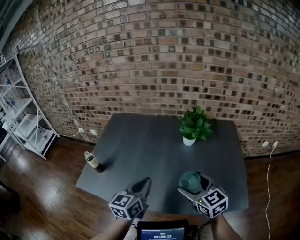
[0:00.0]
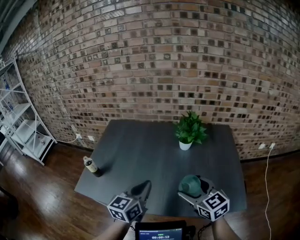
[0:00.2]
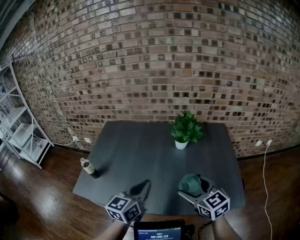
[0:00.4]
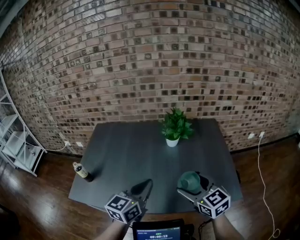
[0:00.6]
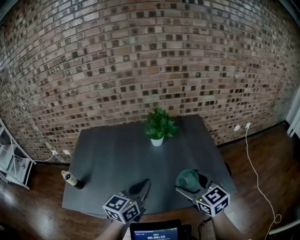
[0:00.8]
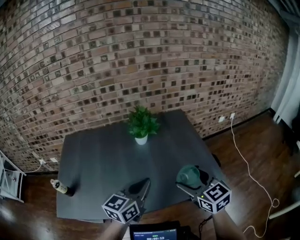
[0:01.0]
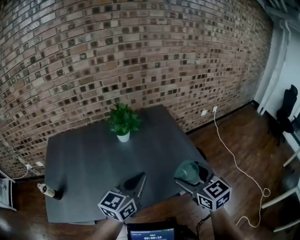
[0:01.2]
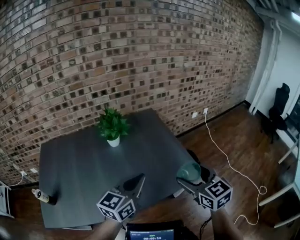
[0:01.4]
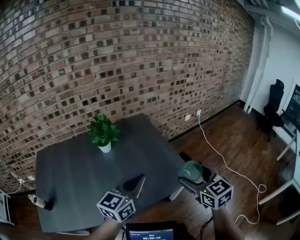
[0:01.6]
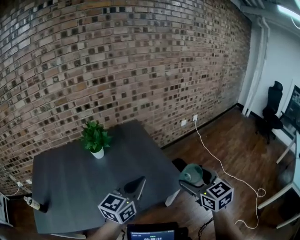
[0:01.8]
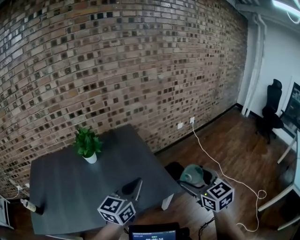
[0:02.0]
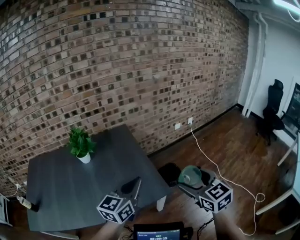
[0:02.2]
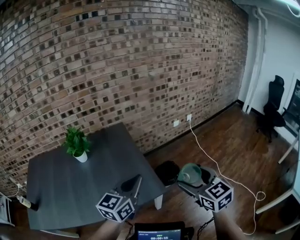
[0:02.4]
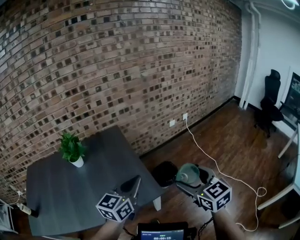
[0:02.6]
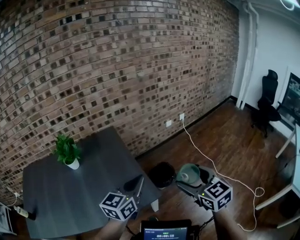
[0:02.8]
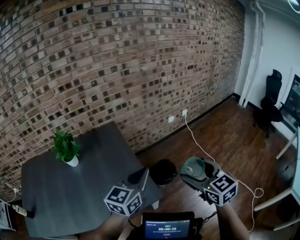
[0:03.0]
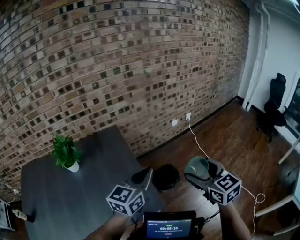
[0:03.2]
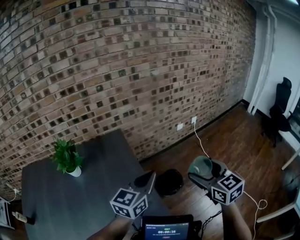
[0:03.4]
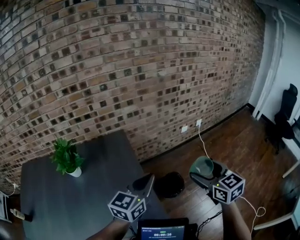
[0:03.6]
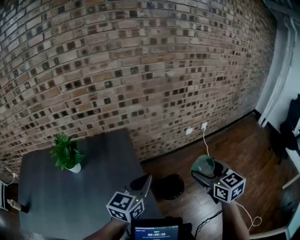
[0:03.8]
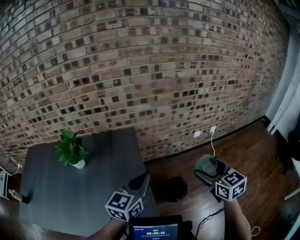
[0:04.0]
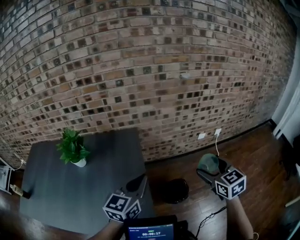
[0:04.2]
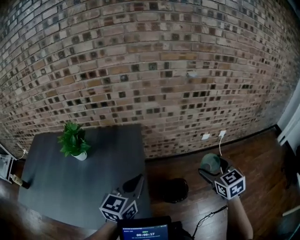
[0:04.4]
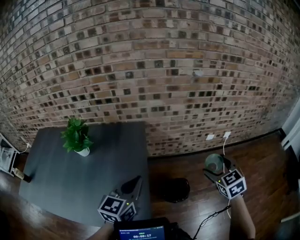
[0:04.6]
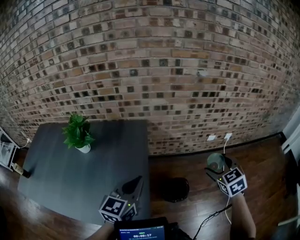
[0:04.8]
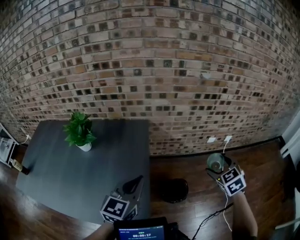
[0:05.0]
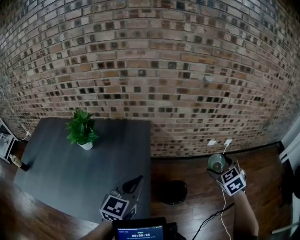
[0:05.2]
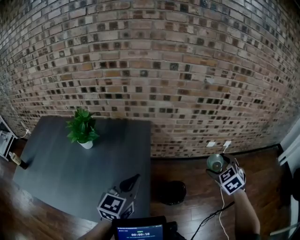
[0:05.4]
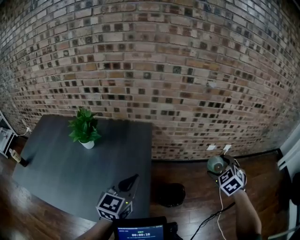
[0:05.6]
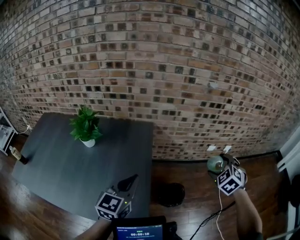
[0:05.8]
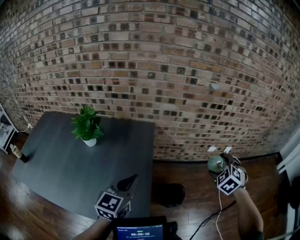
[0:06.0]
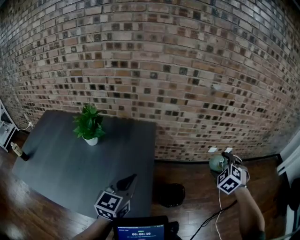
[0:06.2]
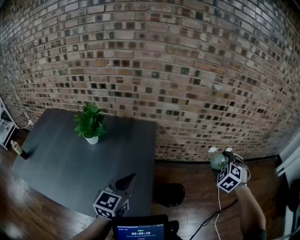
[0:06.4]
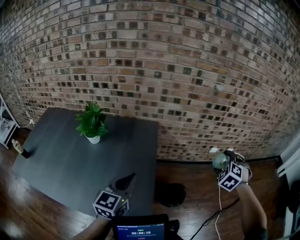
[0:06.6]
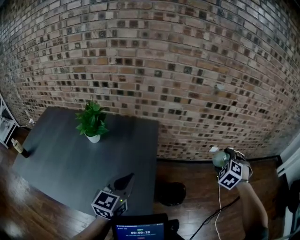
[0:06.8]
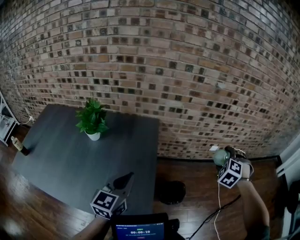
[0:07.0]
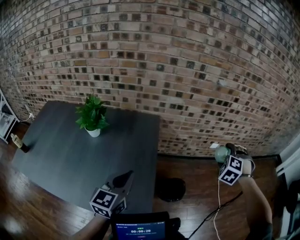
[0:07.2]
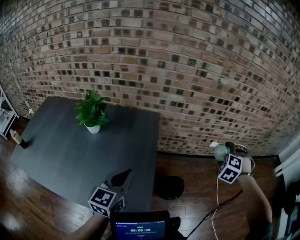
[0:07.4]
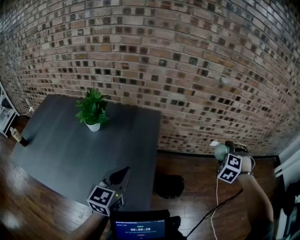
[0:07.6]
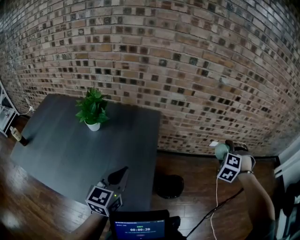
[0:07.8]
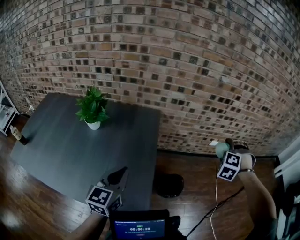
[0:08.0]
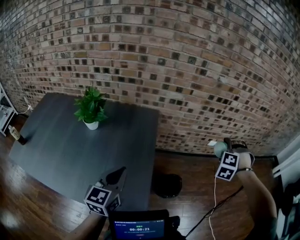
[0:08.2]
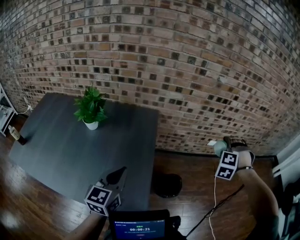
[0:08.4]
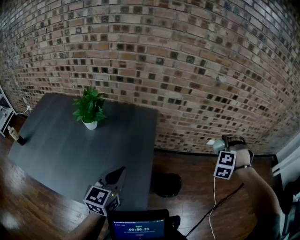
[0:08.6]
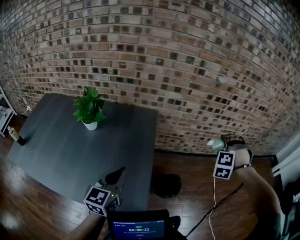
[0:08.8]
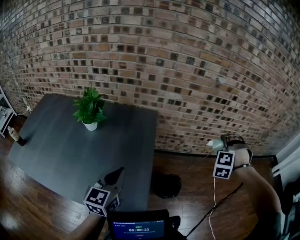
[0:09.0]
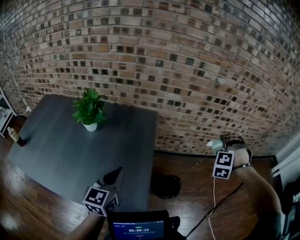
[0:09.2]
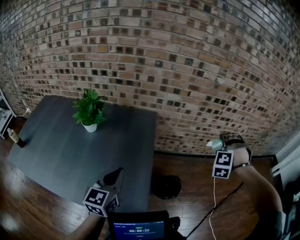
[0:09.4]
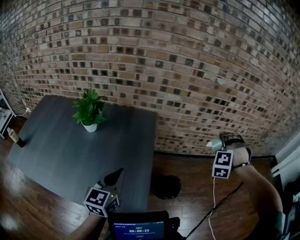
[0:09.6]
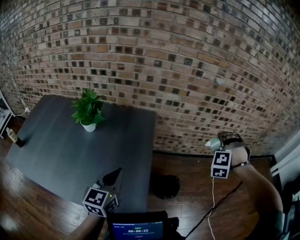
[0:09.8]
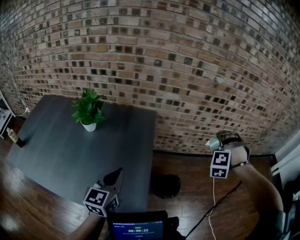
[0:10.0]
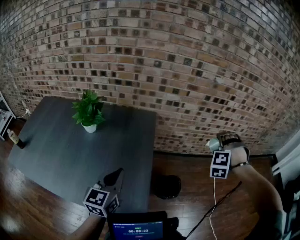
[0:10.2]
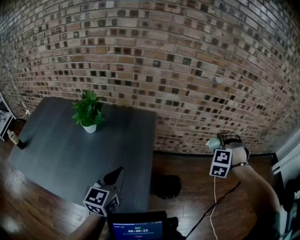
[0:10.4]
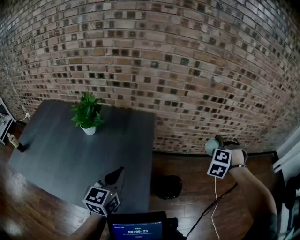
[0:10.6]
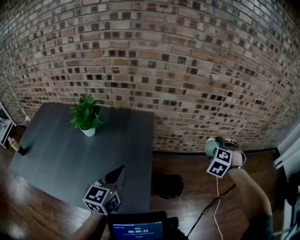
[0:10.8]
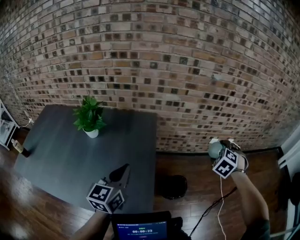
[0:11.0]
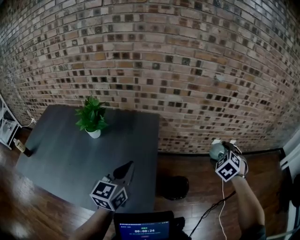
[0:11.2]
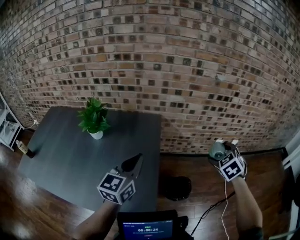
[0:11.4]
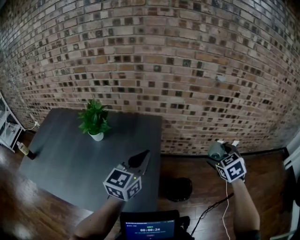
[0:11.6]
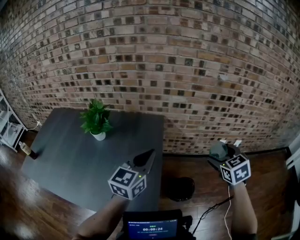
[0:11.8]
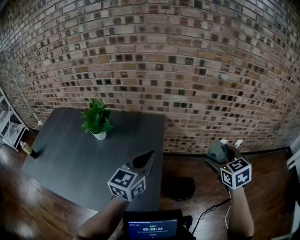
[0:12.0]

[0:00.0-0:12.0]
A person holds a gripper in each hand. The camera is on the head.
0:00.0 to 0:01.6: The left gripper changes place by approximately 30 cm, and swivels approximately 40 degrees, while the right gripper shifts by roughly 30 cm, and turns by about 40 degrees.
0:01.6 to 0:03.0: Both grippers move to the right and forward, approximately 30 cm.
0:03.0 to 0:04.4: The right gripper goes approximately 30 cm forward, and swivels roughly 20 degrees; the left gripper heads forward, covering roughly 20 cm, and turns by approximately 30 degrees.
0:04.4 to 0:06.0: The right gripper shifts roughly 5 cm forward, and turns by about 40 degrees. The left gripper is displaced to the left by roughly 5 cm.
0:06.0 to 0:07.6: The left gripper moves some 5 cm. The right gripper turns by roughly 30 degrees.
0:07.6 to 0:09.0: The right gripper swivels roughly 20 degrees.
0:09.0 to 0:10.4: The grippers stay close to where they were, moving slightly.
0:10.4 to 0:12.0: The left gripper travels forward, to the right and upward by roughly 15 cm, while the right gripper changes place by some 5 cm, and rotates around the line of its fingers by some 70 degrees, clockwise from behind.

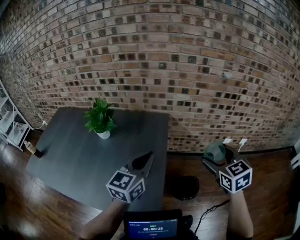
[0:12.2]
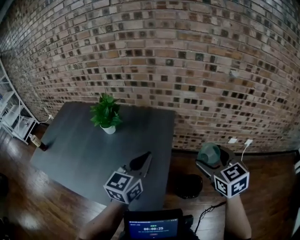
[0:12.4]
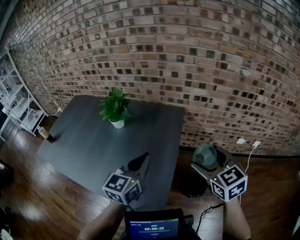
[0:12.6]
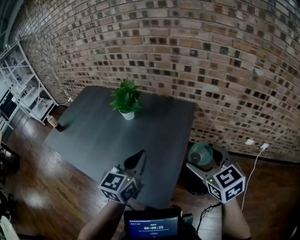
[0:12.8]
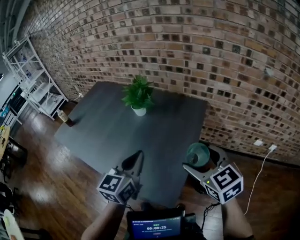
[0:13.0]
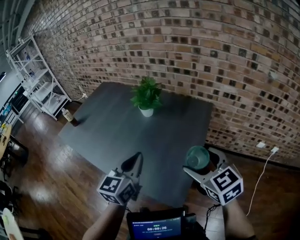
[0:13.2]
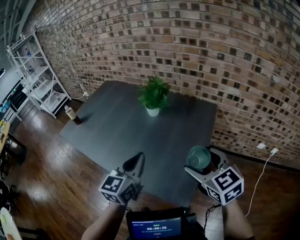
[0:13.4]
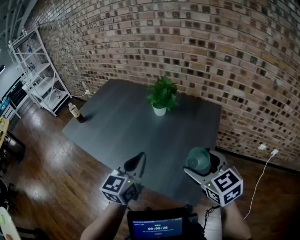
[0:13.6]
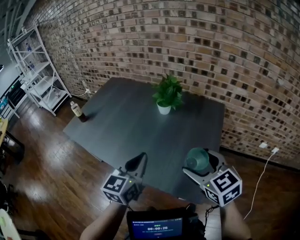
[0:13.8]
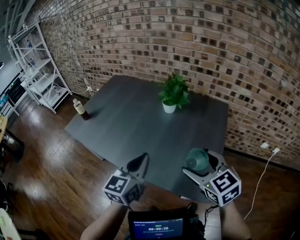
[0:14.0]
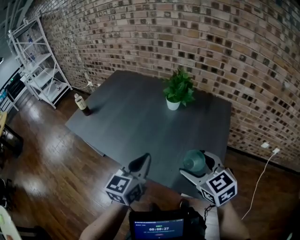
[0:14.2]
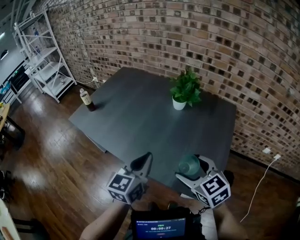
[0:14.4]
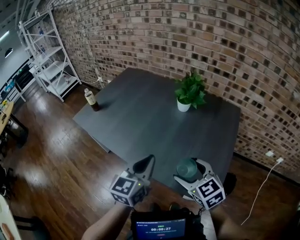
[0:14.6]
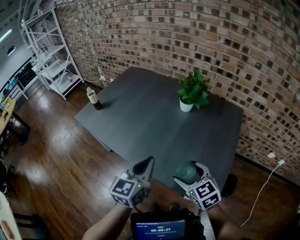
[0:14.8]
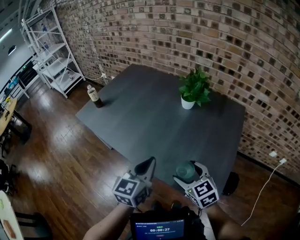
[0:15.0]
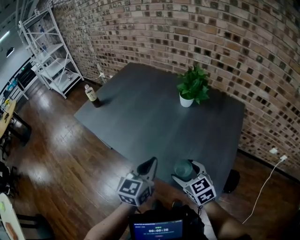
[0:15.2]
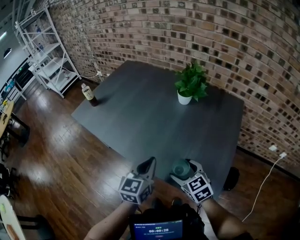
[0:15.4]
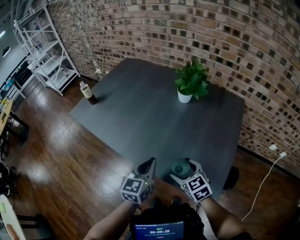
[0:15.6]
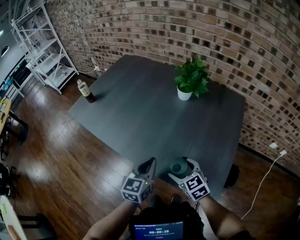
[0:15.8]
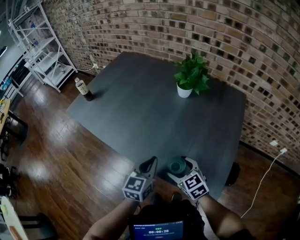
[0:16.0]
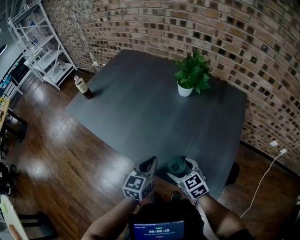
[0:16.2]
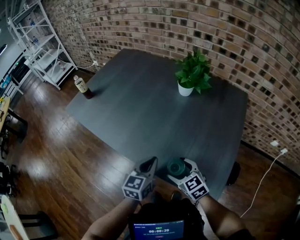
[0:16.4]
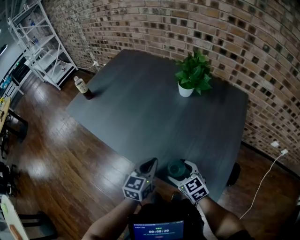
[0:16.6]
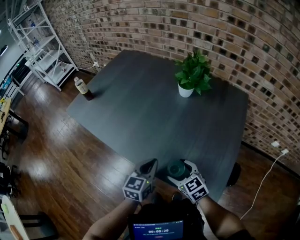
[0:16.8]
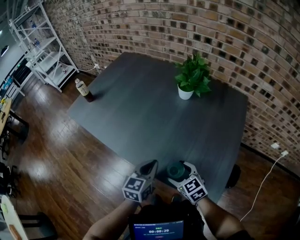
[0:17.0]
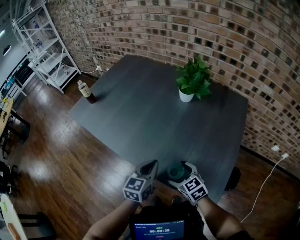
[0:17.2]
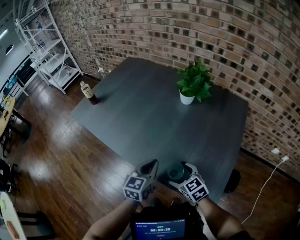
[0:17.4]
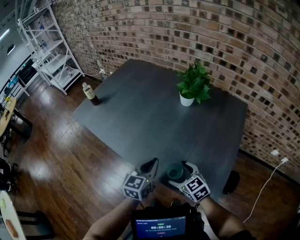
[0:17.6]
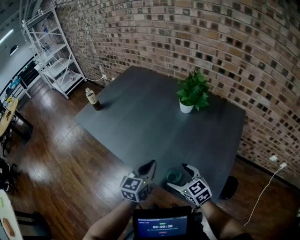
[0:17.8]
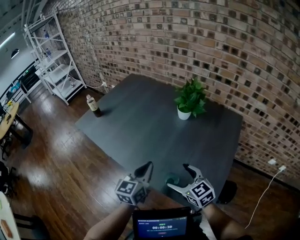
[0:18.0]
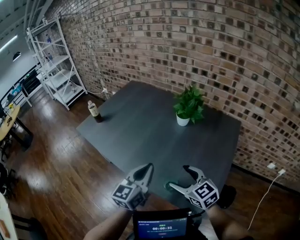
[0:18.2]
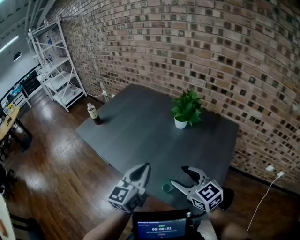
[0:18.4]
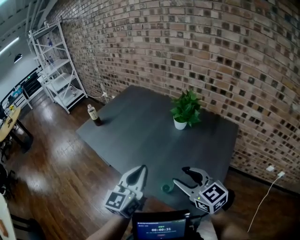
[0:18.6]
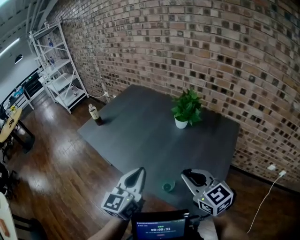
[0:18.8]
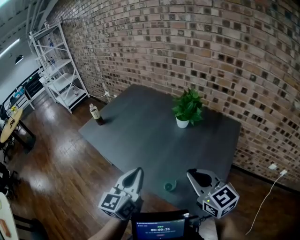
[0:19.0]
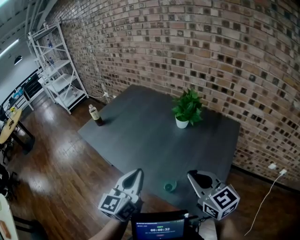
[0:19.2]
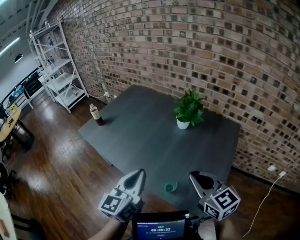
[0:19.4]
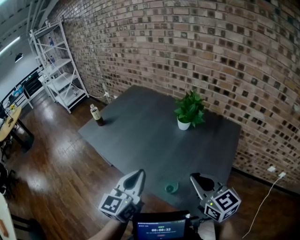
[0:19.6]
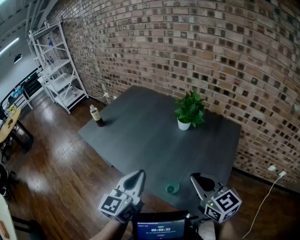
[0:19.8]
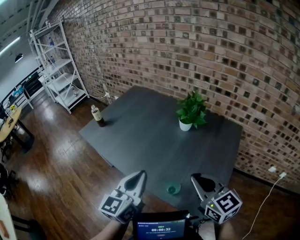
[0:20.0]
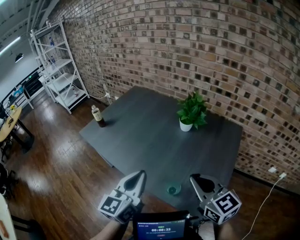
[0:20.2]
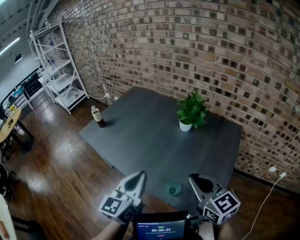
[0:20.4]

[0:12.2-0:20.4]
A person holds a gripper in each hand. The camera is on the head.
0:12.2 to 0:13.8: The left gripper changes place by some 35 cm, and rotates approximately 20 degrees, while the right gripper ends up approximately 40 cm from where it was, and rotates roughly 30 degrees.
0:13.8 to 0:15.4: The right gripper travels downward and to the left by about 25 cm. Meanwhile the left gripper moves downward and to the left, approximately 15 cm.
0:15.4 to 0:17.2: The two grippers go approximately 5 cm downward.
0:17.2 to 0:18.8: The grippers both shift upward by about 25 cm. The left gripper changes its angle by about 20 degrees. Meanwhile the right gripper turns by approximately 20 degrees, and closes.
0:18.8 to 0:20.4: There are only small adjustments of the grippers.

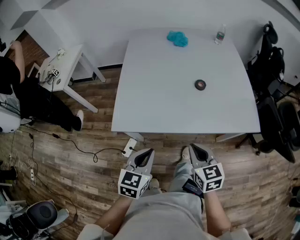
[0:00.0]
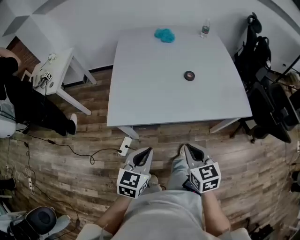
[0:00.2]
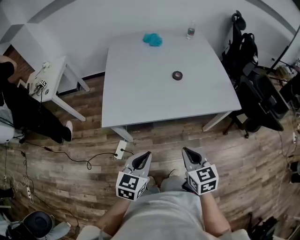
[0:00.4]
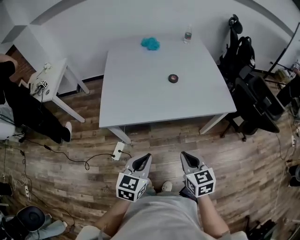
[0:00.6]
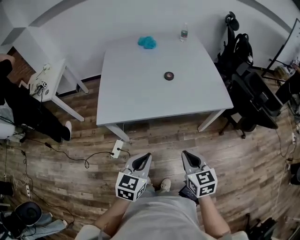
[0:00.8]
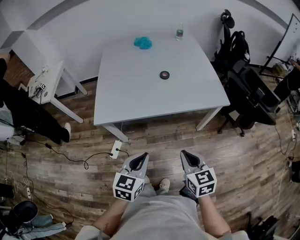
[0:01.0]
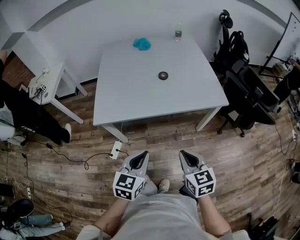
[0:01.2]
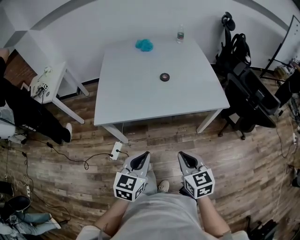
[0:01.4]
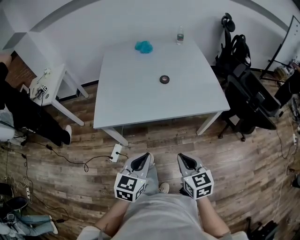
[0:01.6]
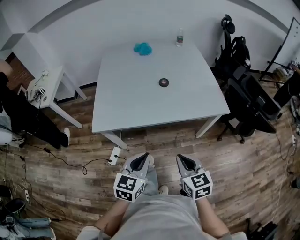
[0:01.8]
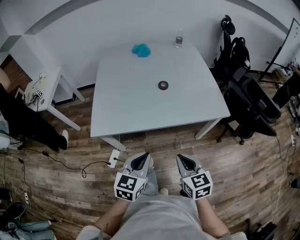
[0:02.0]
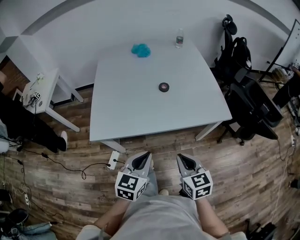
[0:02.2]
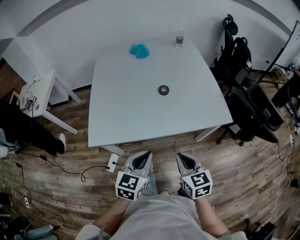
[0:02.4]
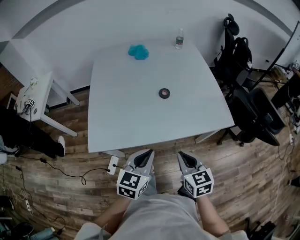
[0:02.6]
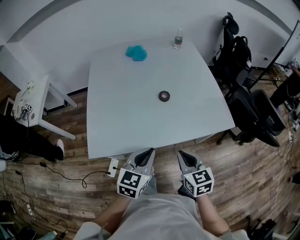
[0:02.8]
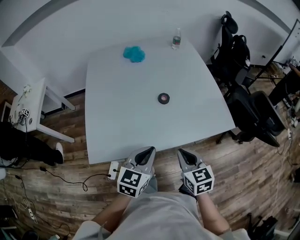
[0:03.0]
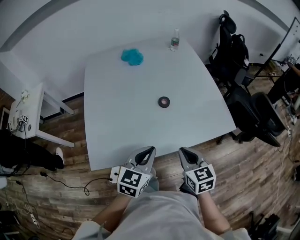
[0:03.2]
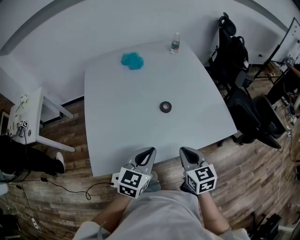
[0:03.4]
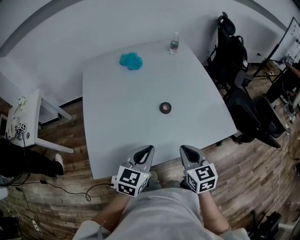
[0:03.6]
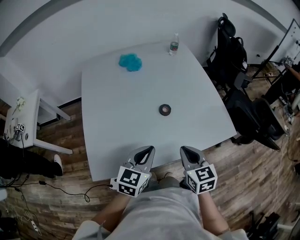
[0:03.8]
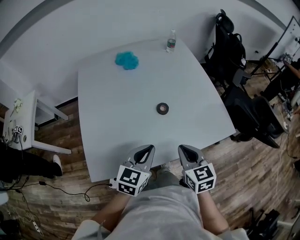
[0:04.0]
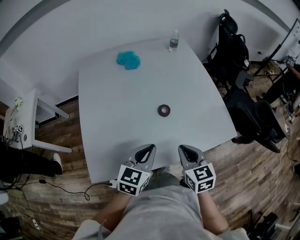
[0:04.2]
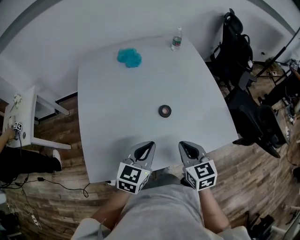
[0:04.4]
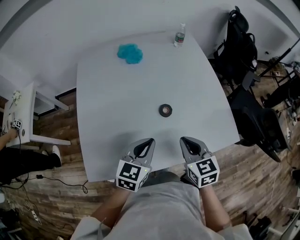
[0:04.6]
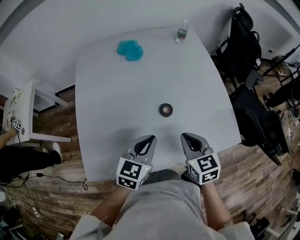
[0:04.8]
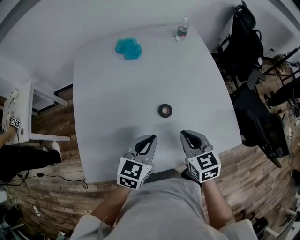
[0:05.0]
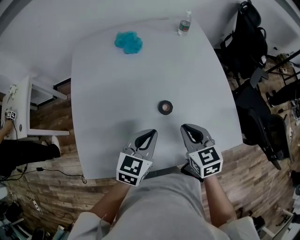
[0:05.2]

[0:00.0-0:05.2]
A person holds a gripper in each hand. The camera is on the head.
0:00.0 to 0:01.8: The left gripper is displaced to the right and backward by approximately 15 cm, while the right gripper goes roughly 15 cm backward and to the right.
0:01.8 to 0:03.4: Both grippers travel together forward, approximately 25 cm.
0:03.4 to 0:05.2: Both grippers travel together forward, some 20 cm.
